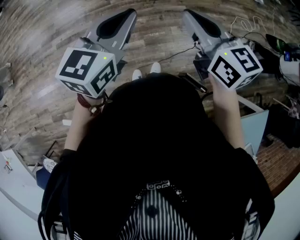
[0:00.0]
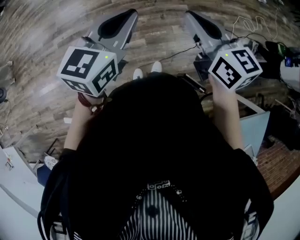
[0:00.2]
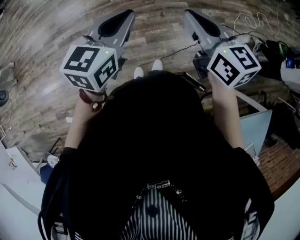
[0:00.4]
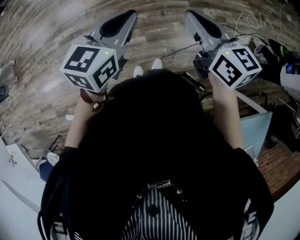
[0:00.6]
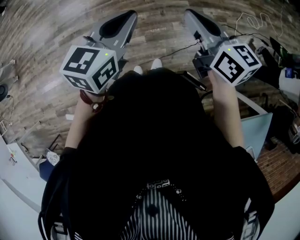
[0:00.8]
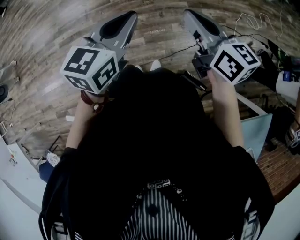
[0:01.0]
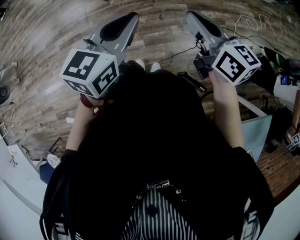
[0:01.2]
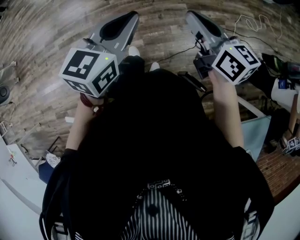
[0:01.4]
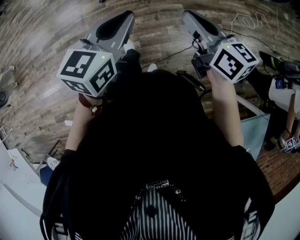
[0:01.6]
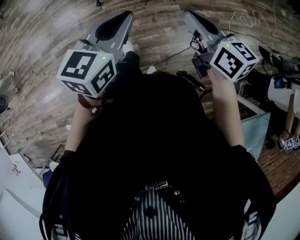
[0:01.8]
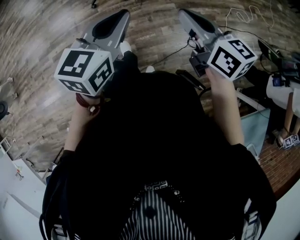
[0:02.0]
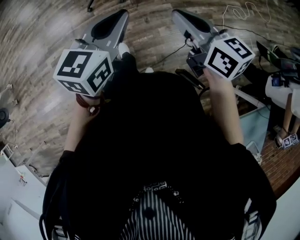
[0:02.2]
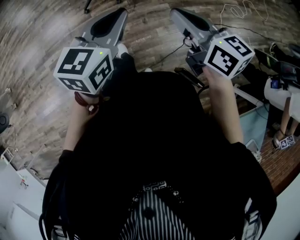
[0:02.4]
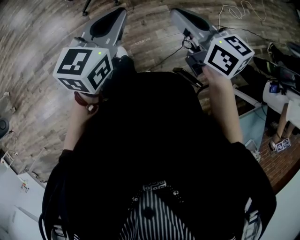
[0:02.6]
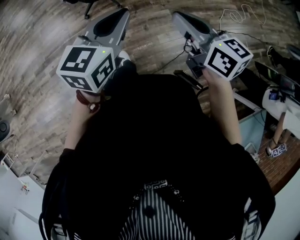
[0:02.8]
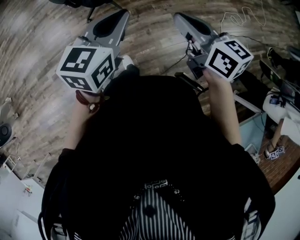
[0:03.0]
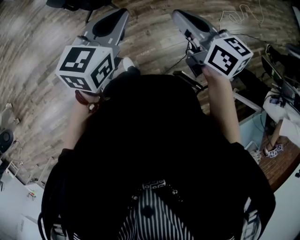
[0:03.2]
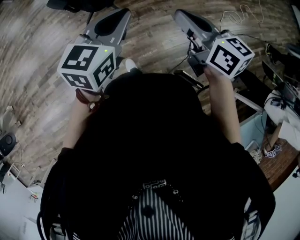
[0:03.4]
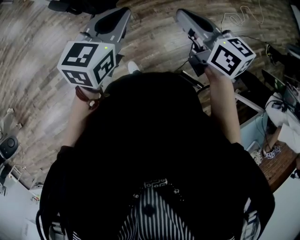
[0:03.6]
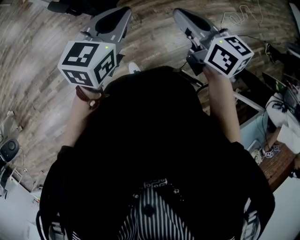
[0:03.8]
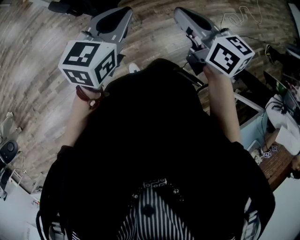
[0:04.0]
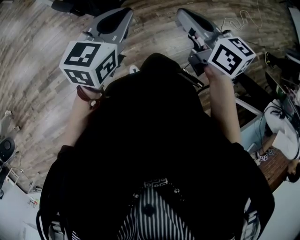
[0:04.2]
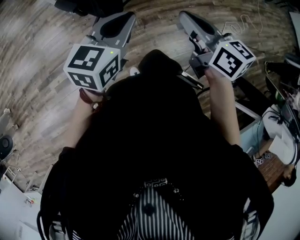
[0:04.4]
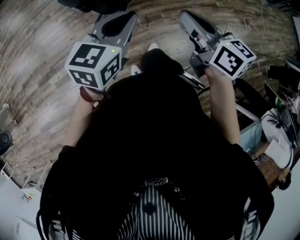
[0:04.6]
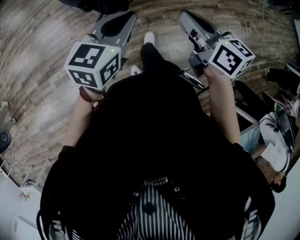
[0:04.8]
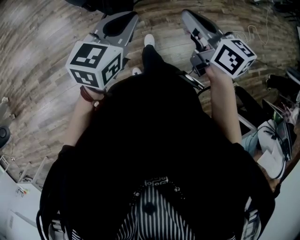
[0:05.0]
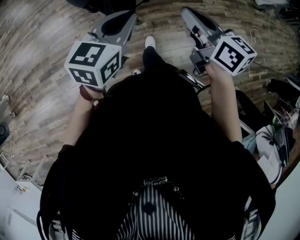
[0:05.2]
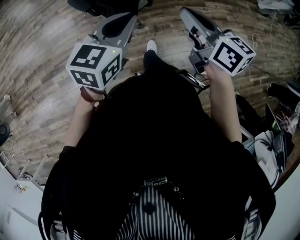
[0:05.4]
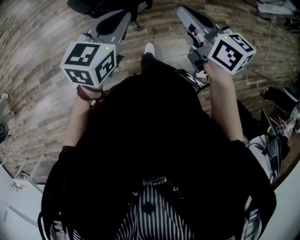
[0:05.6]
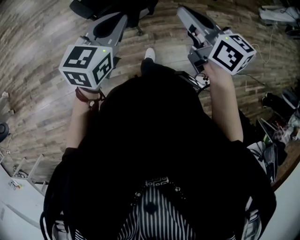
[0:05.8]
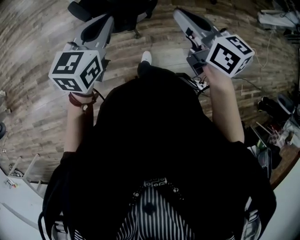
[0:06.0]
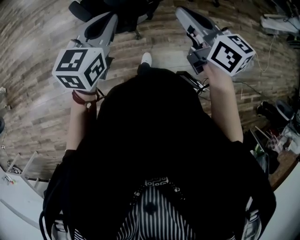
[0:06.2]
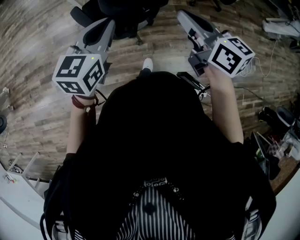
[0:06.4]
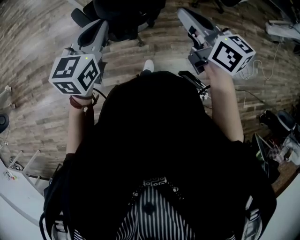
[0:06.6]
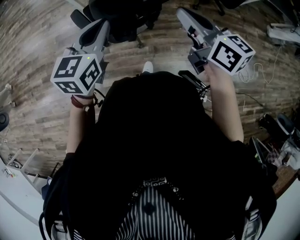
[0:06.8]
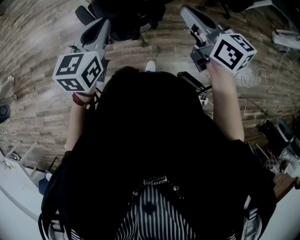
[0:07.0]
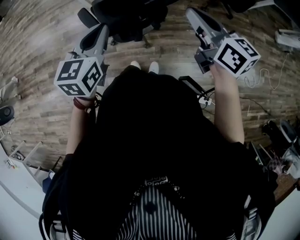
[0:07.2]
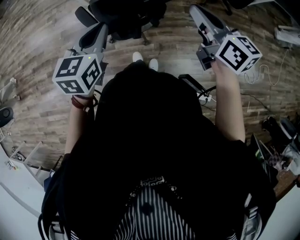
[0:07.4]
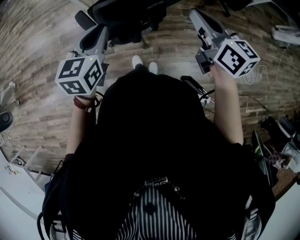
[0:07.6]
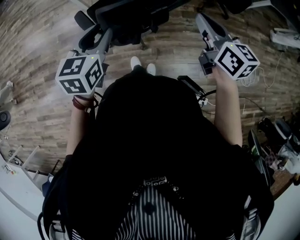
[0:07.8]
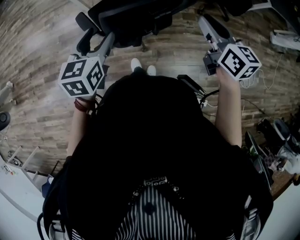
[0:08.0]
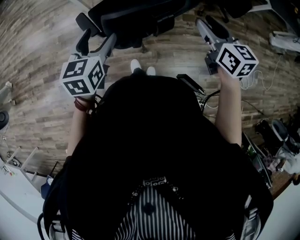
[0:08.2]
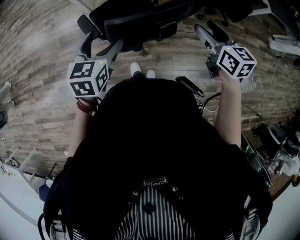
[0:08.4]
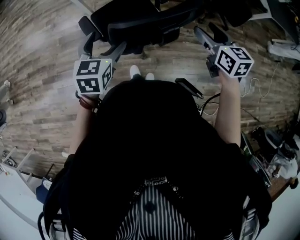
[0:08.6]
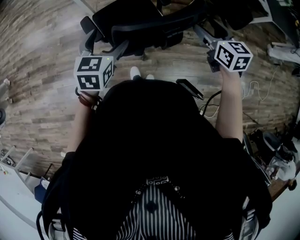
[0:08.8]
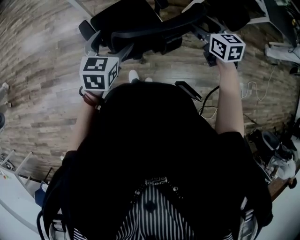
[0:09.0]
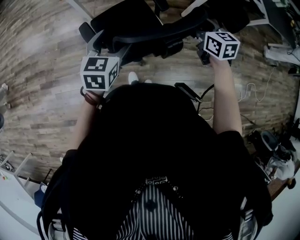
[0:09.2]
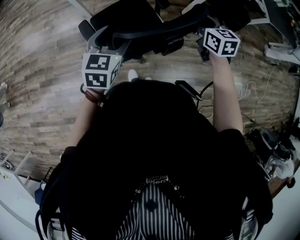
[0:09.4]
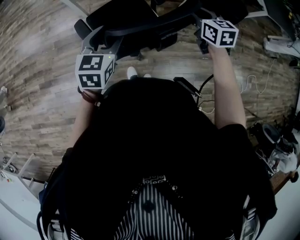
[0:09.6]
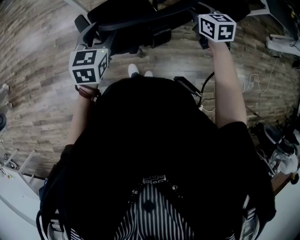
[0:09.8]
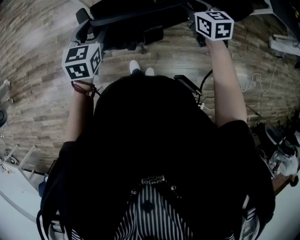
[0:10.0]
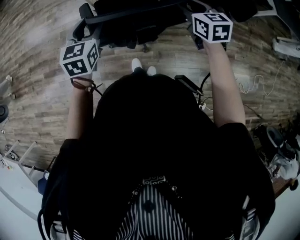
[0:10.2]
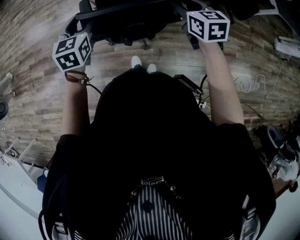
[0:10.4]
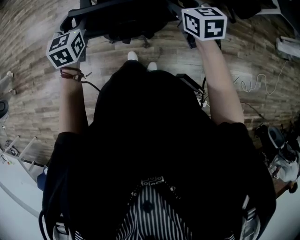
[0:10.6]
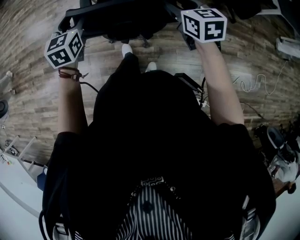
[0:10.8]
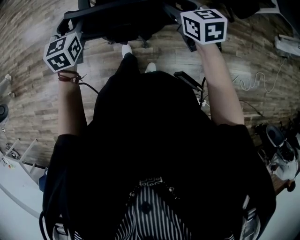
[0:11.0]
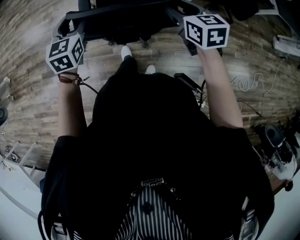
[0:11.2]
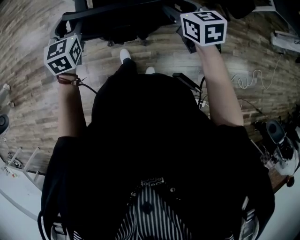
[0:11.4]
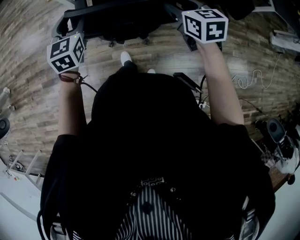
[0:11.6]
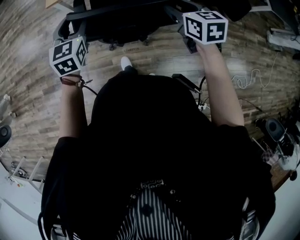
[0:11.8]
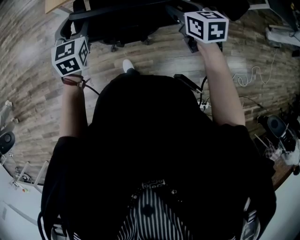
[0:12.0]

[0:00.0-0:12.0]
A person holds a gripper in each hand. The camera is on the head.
0:00.0 to 0:01.6: The grippers both shift to the right by approximately 10 cm.
0:01.6 to 0:03.0: The grippers both shift forward by approximately 20 cm.
0:03.0 to 0:04.4: The right gripper heads forward and to the left, covering some 20 cm. Meanwhile the left gripper goes roughly 20 cm to the left and forward.
0:04.4 to 0:06.0: The left gripper travels forward and to the left by approximately 25 cm; the right gripper moves forward, some 25 cm.
0:06.0 to 0:07.6: The right gripper heads to the right and forward, covering some 15 cm, while the left gripper heads forward, covering some 10 cm.
0:07.6 to 0:09.0: The right gripper moves forward and downward, approximately 15 cm, changes its angle by roughly 30 degrees, and opens. Meanwhile the left gripper heads forward and downward, covering some 10 cm, and opens its fingers.
0:09.0 to 0:10.4: The left gripper moves to the left, some 5 cm, and closes. The right gripper closes its fingers.
0:10.4 to 0:12.0: Both grippers travel together forward, some 20 cm.

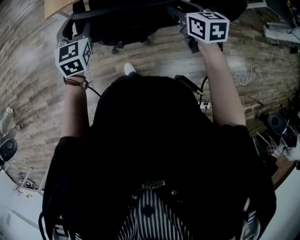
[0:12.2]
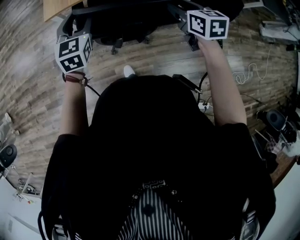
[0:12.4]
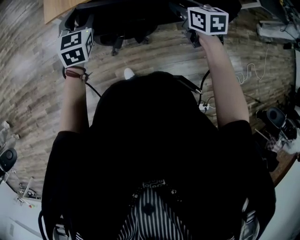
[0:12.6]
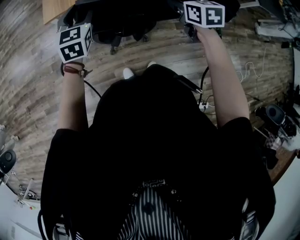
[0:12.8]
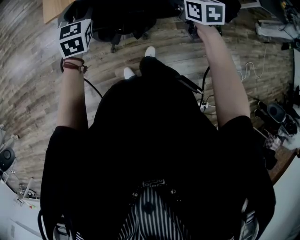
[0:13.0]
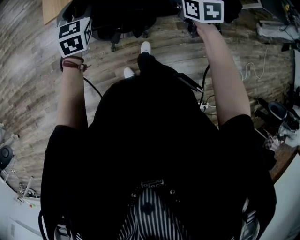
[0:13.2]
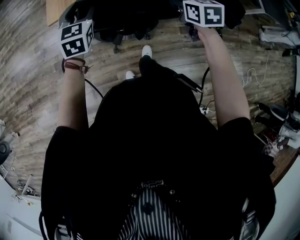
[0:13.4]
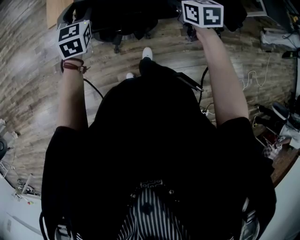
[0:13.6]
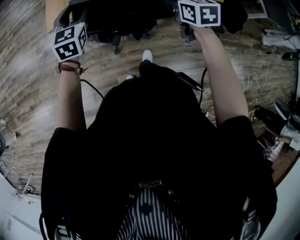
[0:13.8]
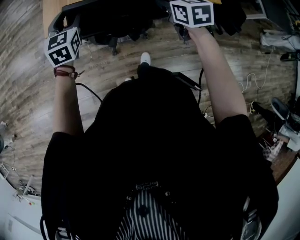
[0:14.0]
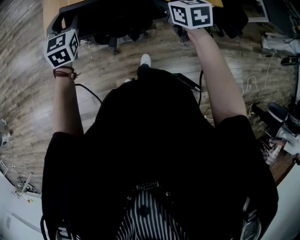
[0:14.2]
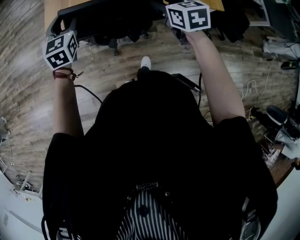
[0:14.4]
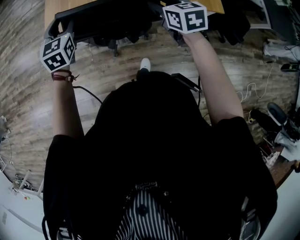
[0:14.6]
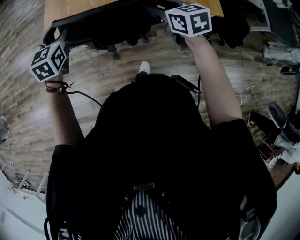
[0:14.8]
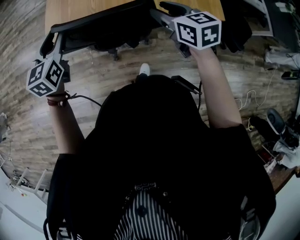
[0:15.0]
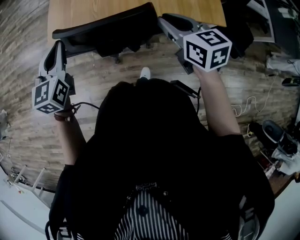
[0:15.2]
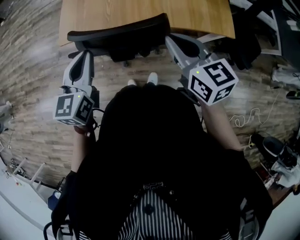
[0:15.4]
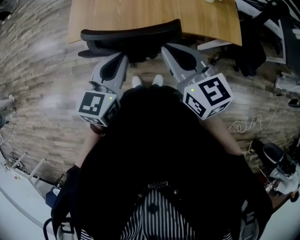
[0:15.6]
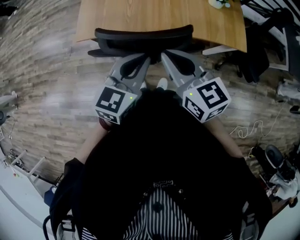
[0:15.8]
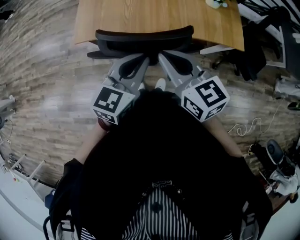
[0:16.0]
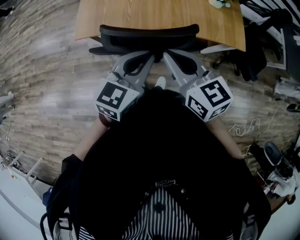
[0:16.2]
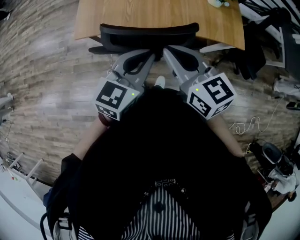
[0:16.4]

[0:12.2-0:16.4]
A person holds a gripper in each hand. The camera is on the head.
0:12.2 to 0:13.6: The two grippers go roughly 20 cm forward.
0:13.6 to 0:15.0: The right gripper changes place by about 5 cm, while the left gripper is displaced upward by about 5 cm.
0:15.0 to 0:16.4: The right gripper is displaced to the left and upward by about 15 cm, and closes its fingers. The left gripper heads to the right and backward, covering some 15 cm, and turns by about 30 degrees.

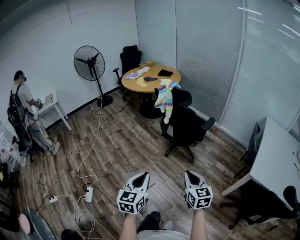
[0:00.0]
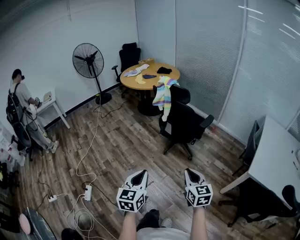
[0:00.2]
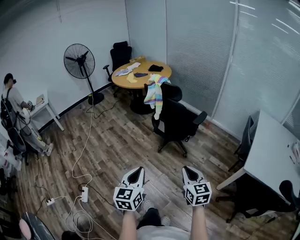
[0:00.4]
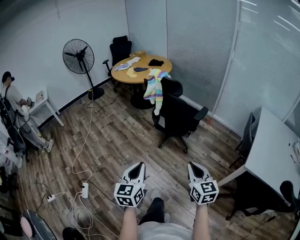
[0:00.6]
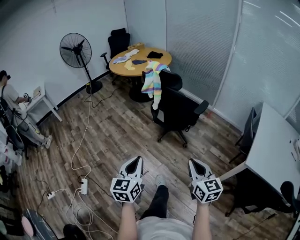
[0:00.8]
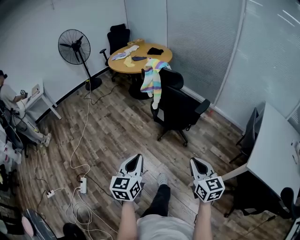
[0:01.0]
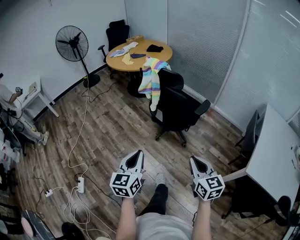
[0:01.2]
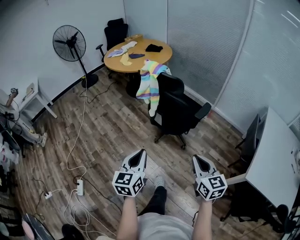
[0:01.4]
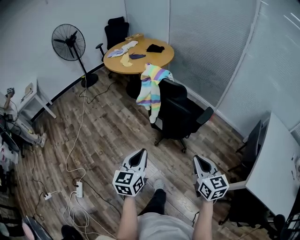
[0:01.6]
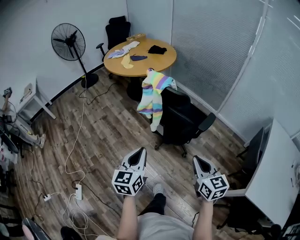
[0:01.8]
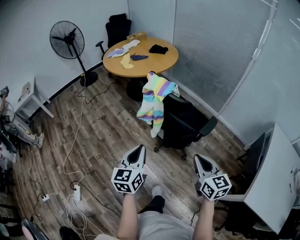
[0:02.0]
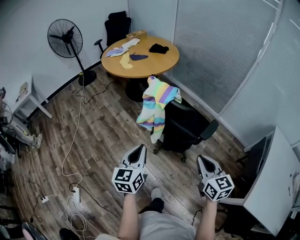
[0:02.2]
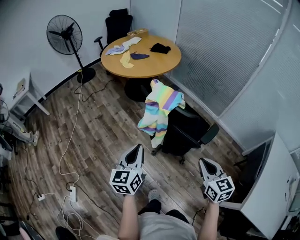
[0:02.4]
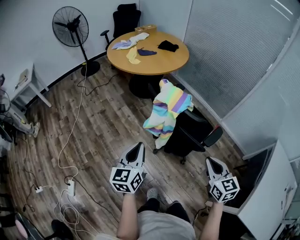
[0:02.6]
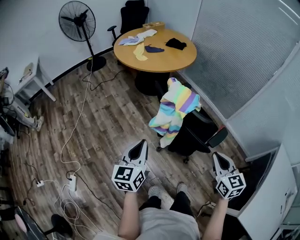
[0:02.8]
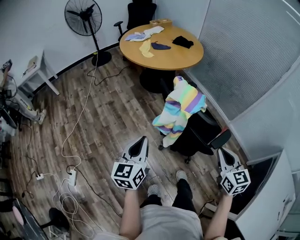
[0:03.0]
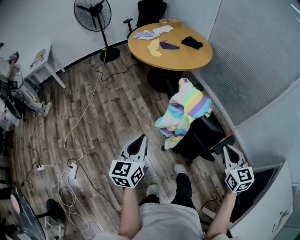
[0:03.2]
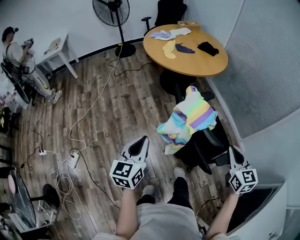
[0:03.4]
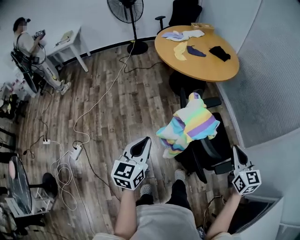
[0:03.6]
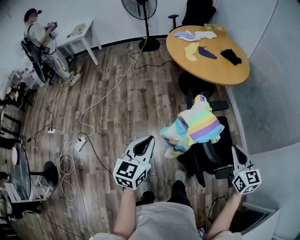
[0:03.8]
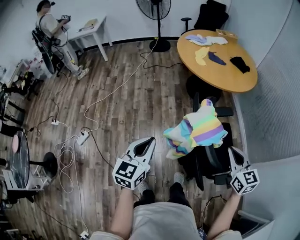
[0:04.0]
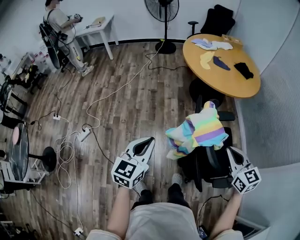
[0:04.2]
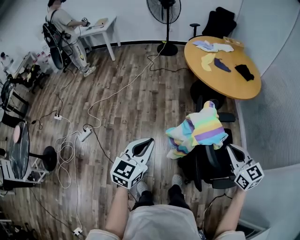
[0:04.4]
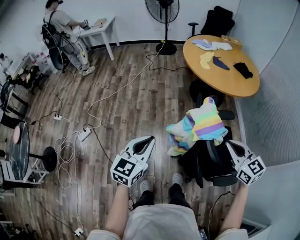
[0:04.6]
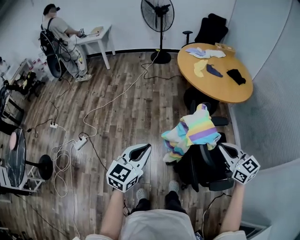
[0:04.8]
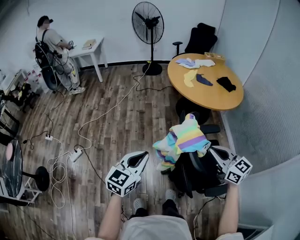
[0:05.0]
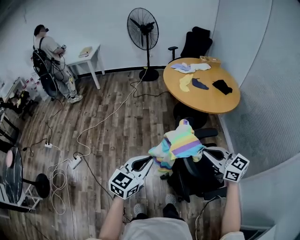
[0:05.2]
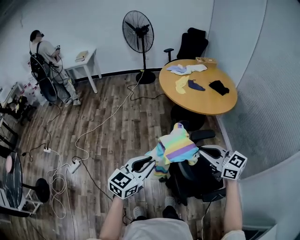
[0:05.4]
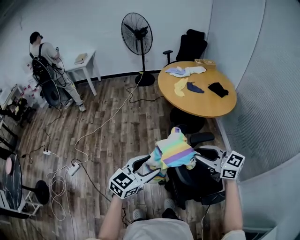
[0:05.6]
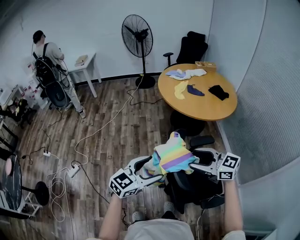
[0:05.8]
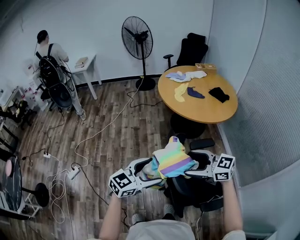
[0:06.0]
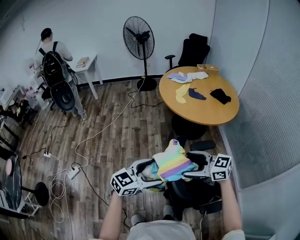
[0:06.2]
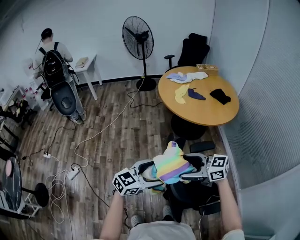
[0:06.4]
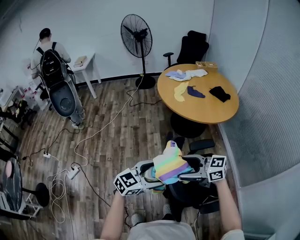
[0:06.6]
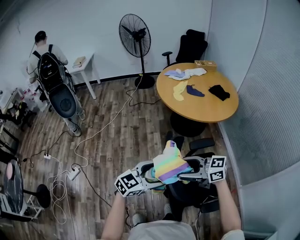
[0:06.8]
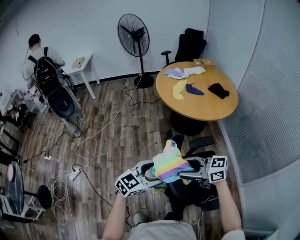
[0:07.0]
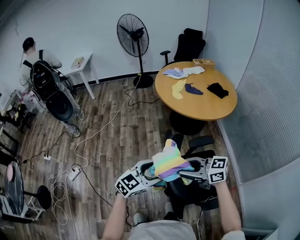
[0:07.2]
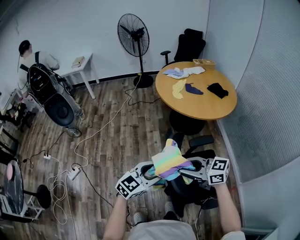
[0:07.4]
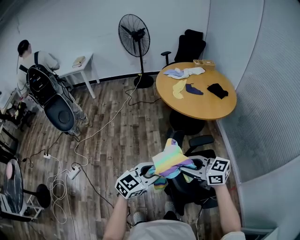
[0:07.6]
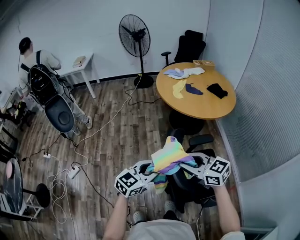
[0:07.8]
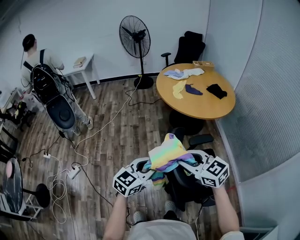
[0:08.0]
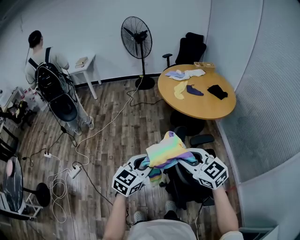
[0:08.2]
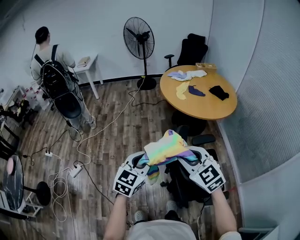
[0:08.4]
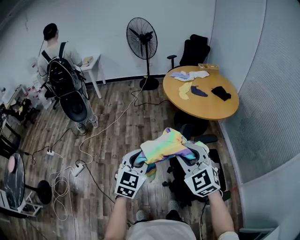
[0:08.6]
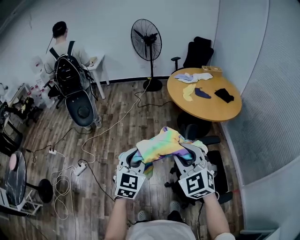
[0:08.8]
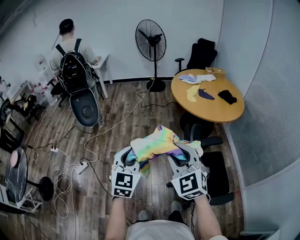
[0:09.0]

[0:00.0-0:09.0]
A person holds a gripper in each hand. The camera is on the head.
0:00.0 to 0:01.6: The grippers both shift forward by approximately 25 cm.
0:01.6 to 0:03.0: Both grippers travel together forward, roughly 25 cm.
0:03.0 to 0:04.4: The right gripper changes place by approximately 20 cm, and swivels some 50 degrees. Meanwhile the left gripper turns by about 20 degrees.
0:04.4 to 0:06.0: The right gripper moves approximately 5 cm, changes its angle by approximately 40 degrees, and opens its fingers. The left gripper moves roughly 15 cm, changes its angle by approximately 30 degrees, and opens up.
0:06.0 to 0:07.6: The left gripper closes; the right gripper closes.
0:07.6 to 0:09.0: Both grippers travel together to the left and upward, some 20 cm. The left gripper rotates roughly 50 degrees; the right gripper turns by roughly 50 degrees.
